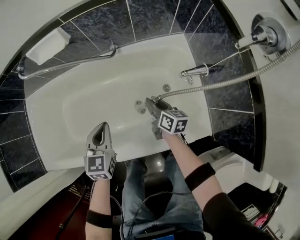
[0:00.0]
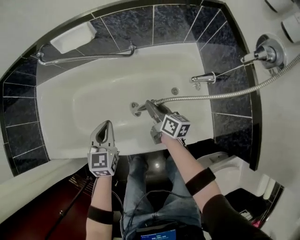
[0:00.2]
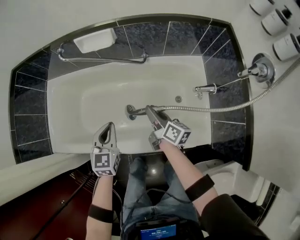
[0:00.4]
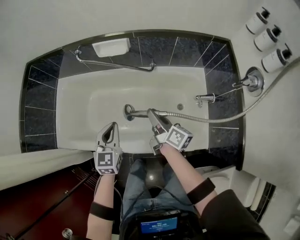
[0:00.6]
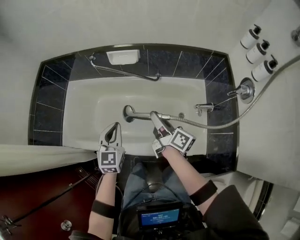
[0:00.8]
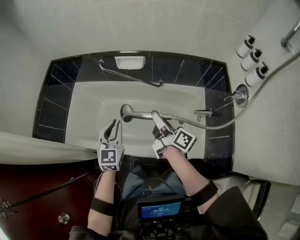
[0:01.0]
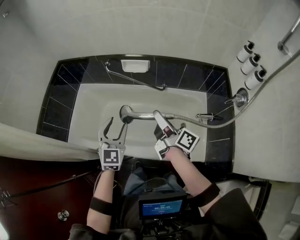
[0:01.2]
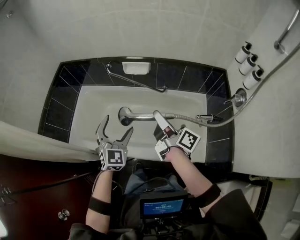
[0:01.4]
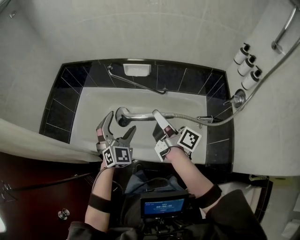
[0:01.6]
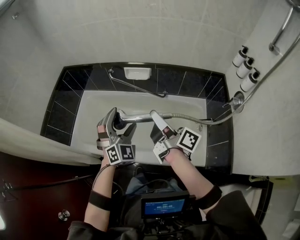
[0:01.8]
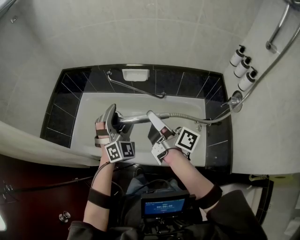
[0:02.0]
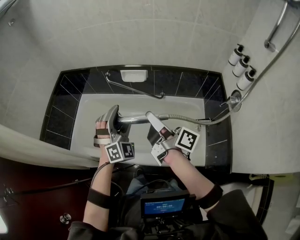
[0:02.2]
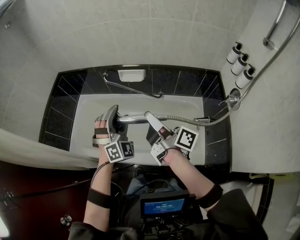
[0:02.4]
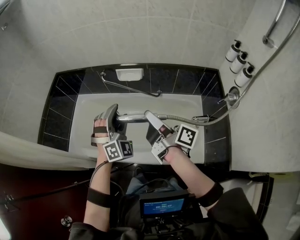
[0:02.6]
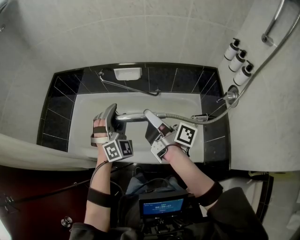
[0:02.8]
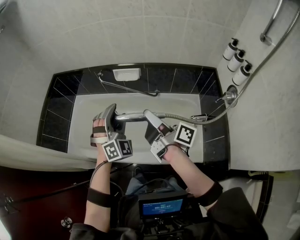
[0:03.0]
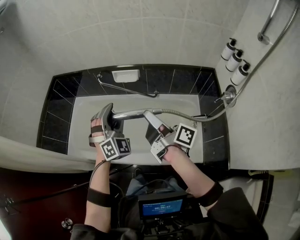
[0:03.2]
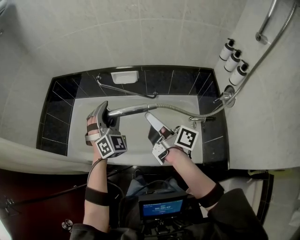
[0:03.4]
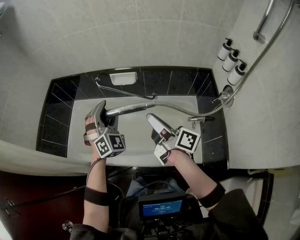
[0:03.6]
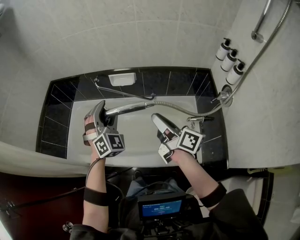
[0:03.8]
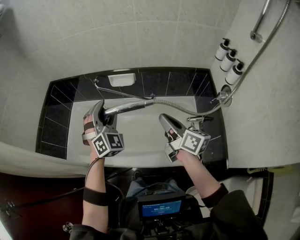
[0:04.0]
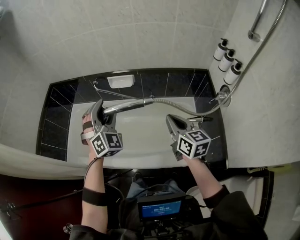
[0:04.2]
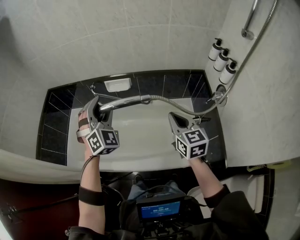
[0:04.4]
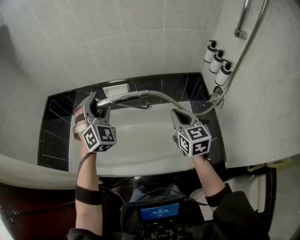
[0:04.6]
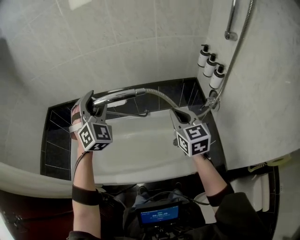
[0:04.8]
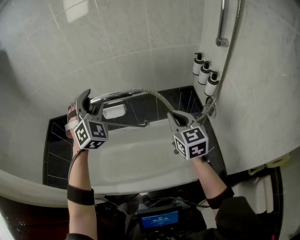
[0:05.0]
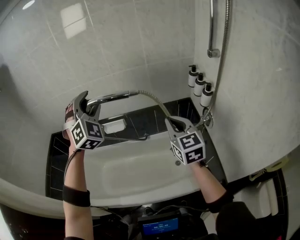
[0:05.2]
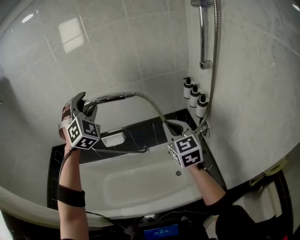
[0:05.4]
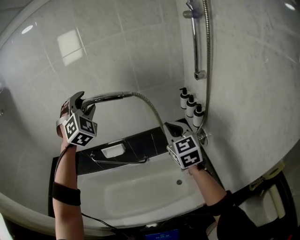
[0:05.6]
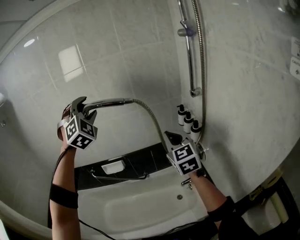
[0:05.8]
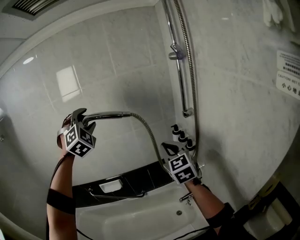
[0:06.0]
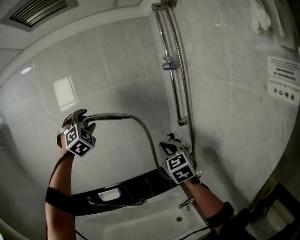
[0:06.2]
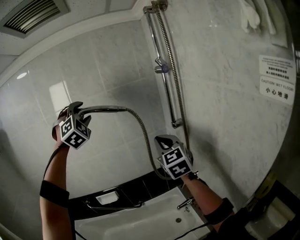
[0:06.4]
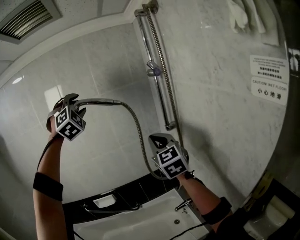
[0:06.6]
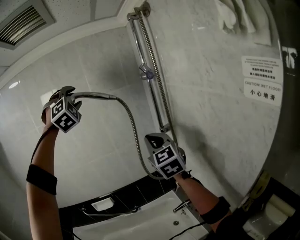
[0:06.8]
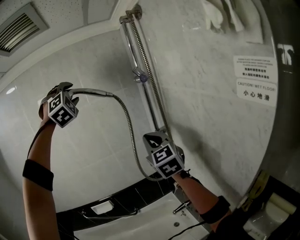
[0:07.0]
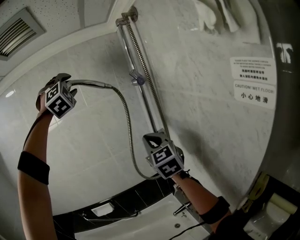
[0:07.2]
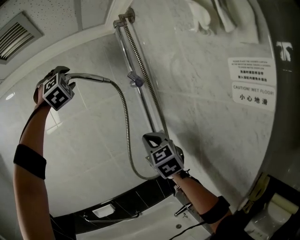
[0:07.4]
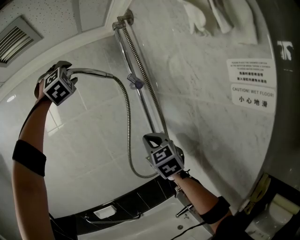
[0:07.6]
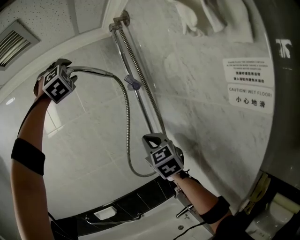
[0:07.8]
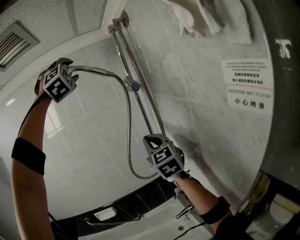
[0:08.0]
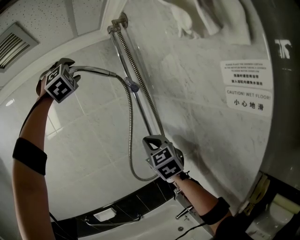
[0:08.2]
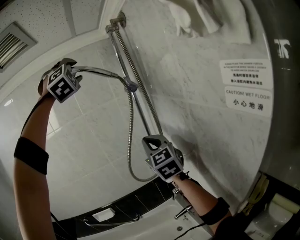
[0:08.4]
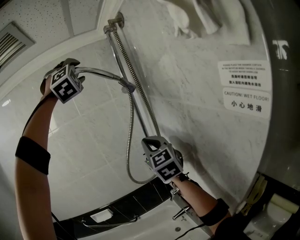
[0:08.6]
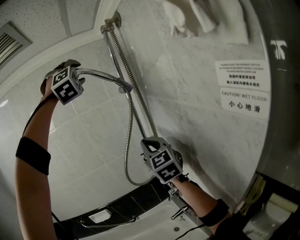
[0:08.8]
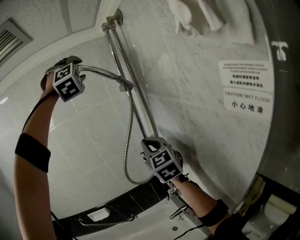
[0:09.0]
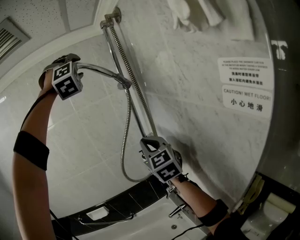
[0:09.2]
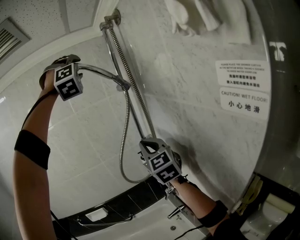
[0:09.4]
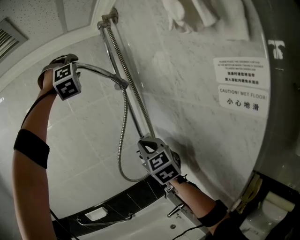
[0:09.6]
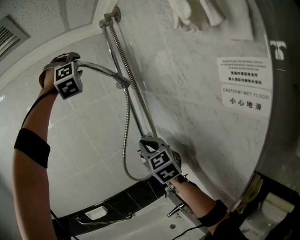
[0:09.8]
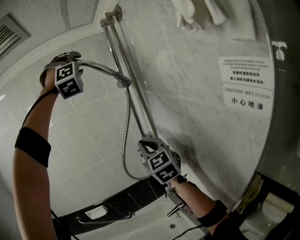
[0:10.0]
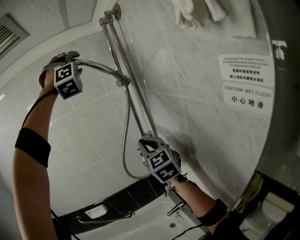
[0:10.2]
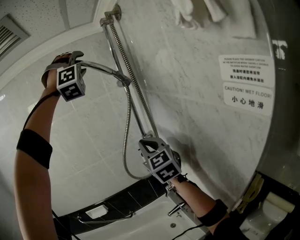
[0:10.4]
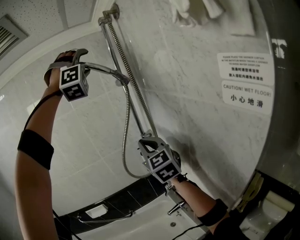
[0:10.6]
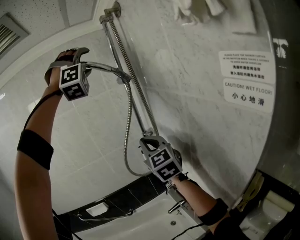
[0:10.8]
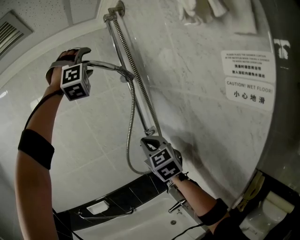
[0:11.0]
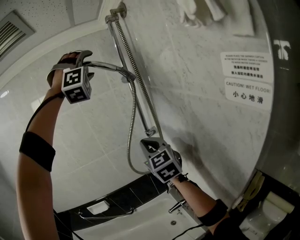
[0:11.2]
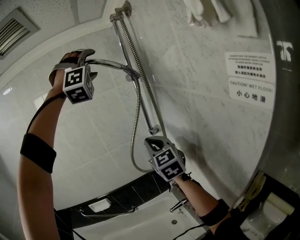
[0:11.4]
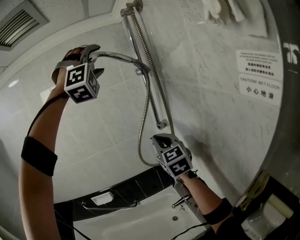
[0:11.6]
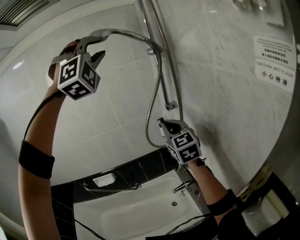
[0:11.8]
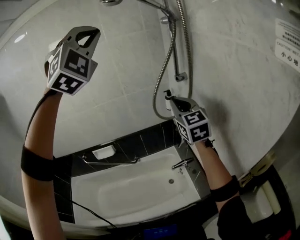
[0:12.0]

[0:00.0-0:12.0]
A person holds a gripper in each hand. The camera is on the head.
0:00.0 to 0:01.6: The grippers both shift upward by approximately 50 cm. The right gripper tilts its fingers about 40 degrees upward; the left gripper changes its angle by approximately 40 degrees, and opens.
0:01.6 to 0:03.0: The left gripper ends up roughly 5 cm from where it was.
0:03.0 to 0:04.4: The left gripper is displaced upward by some 10 cm; the right gripper shifts approximately 15 cm to the right, rotates around the line of its fingers by about 80 degrees, counterclockwise from behind, and closes up.
0:04.4 to 0:06.0: The left gripper is displaced upward, to the right and forward by approximately 40 cm, and turns by roughly 20 degrees. The right gripper goes some 30 cm upward and to the right, and turns by some 30 degrees.
0:06.0 to 0:07.6: The left gripper goes some 35 cm upward and to the right, while the right gripper moves upward and to the right, approximately 20 cm.
0:07.6 to 0:09.0: The left gripper heads to the right, covering roughly 10 cm.
0:09.0 to 0:10.4: The grippers make only small movements.
0:10.4 to 0:12.0: The left gripper is displaced backward, downward and to the left by about 25 cm, swivels roughly 30 degrees, and closes. The right gripper heads downward, covering approximately 10 cm.

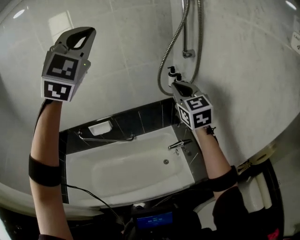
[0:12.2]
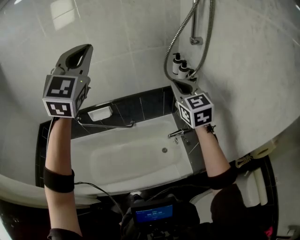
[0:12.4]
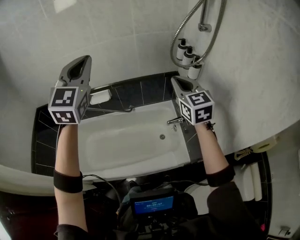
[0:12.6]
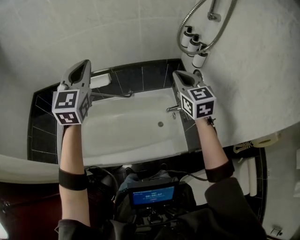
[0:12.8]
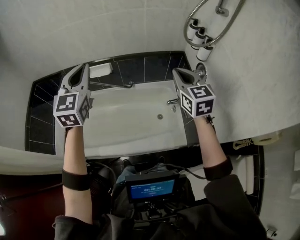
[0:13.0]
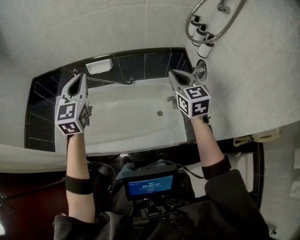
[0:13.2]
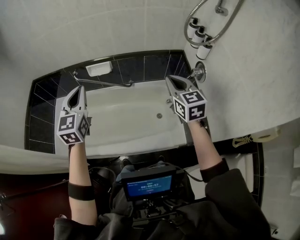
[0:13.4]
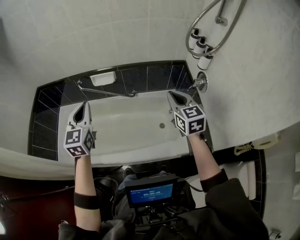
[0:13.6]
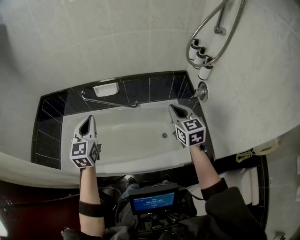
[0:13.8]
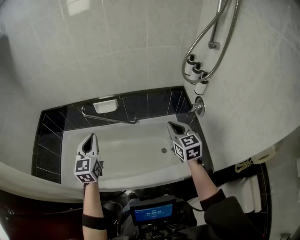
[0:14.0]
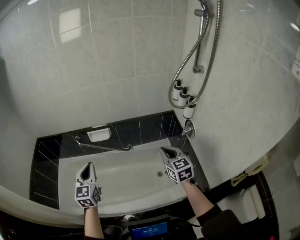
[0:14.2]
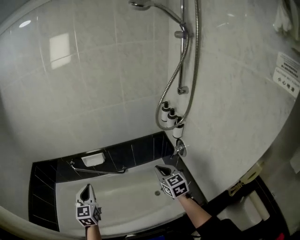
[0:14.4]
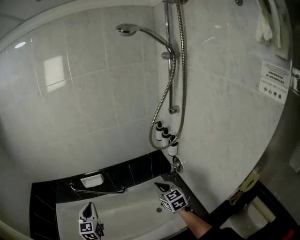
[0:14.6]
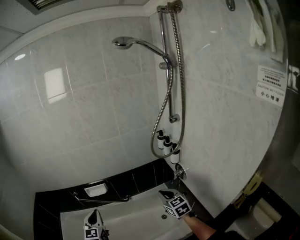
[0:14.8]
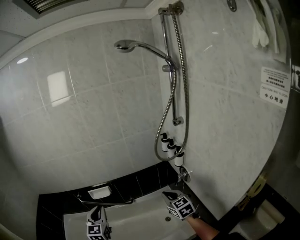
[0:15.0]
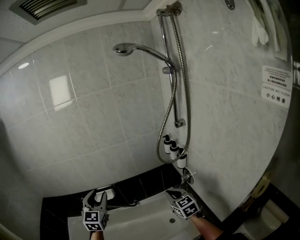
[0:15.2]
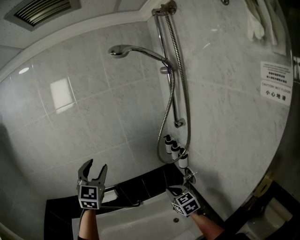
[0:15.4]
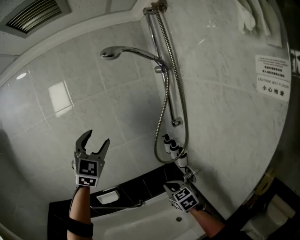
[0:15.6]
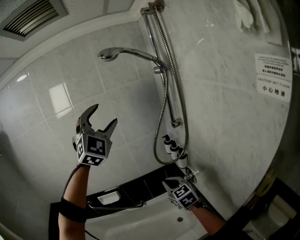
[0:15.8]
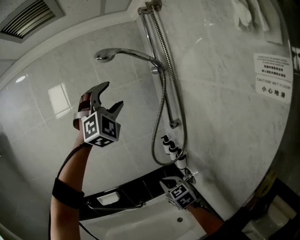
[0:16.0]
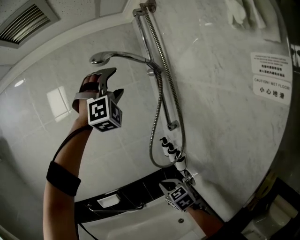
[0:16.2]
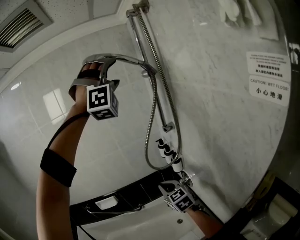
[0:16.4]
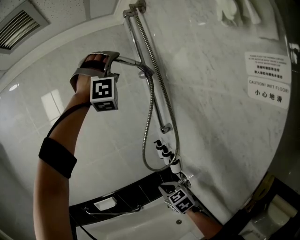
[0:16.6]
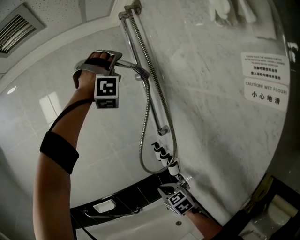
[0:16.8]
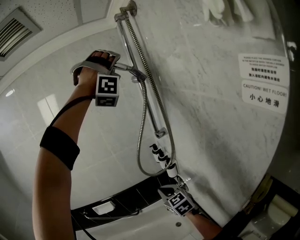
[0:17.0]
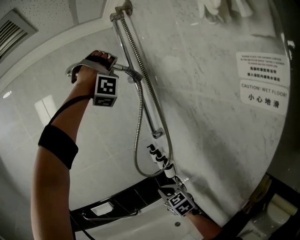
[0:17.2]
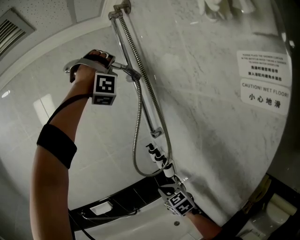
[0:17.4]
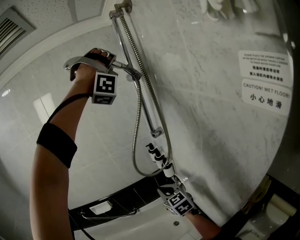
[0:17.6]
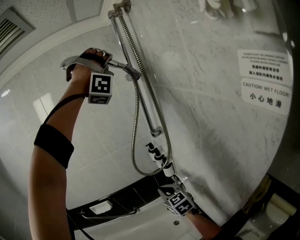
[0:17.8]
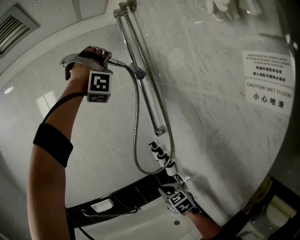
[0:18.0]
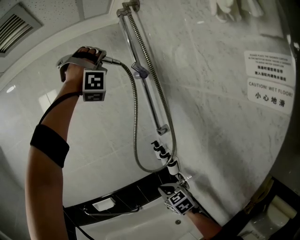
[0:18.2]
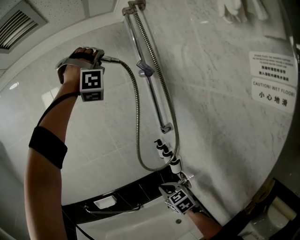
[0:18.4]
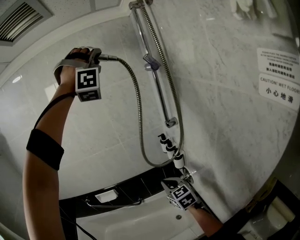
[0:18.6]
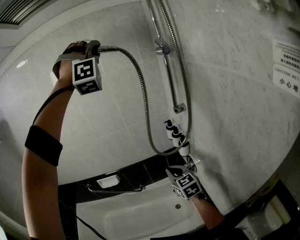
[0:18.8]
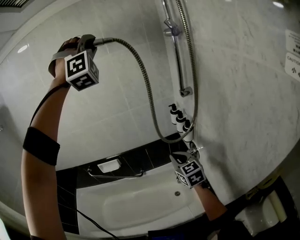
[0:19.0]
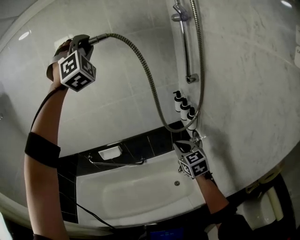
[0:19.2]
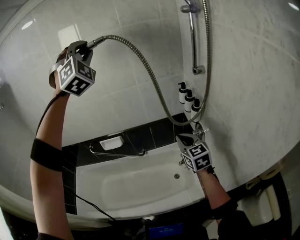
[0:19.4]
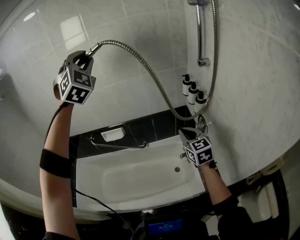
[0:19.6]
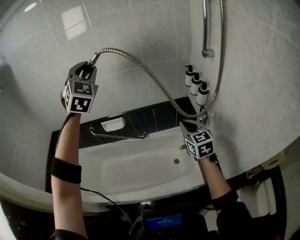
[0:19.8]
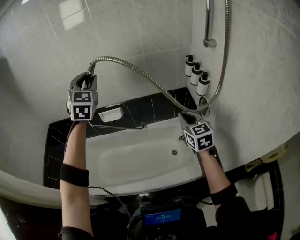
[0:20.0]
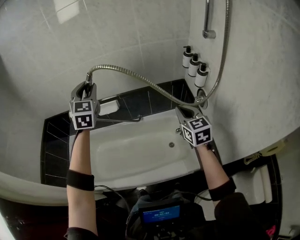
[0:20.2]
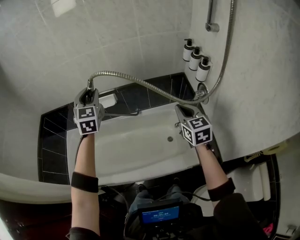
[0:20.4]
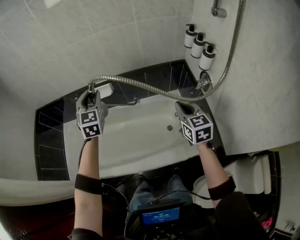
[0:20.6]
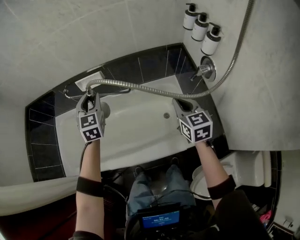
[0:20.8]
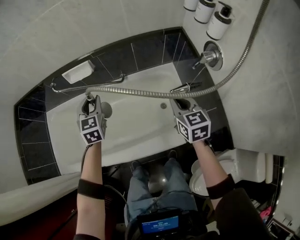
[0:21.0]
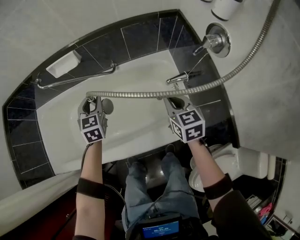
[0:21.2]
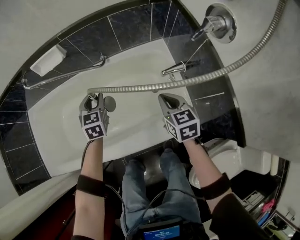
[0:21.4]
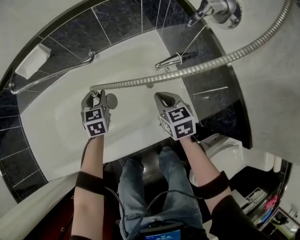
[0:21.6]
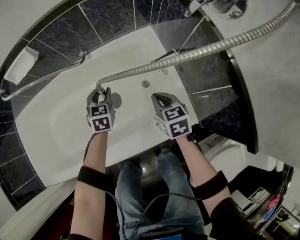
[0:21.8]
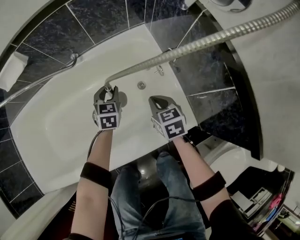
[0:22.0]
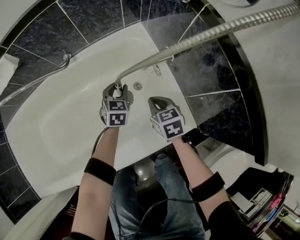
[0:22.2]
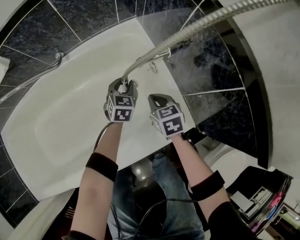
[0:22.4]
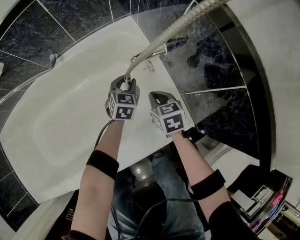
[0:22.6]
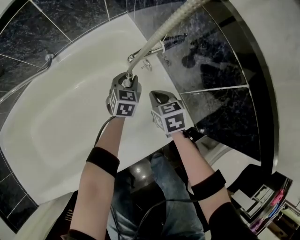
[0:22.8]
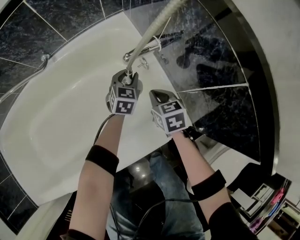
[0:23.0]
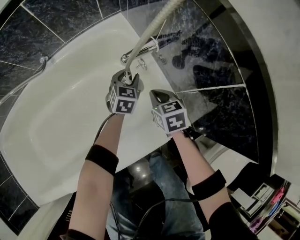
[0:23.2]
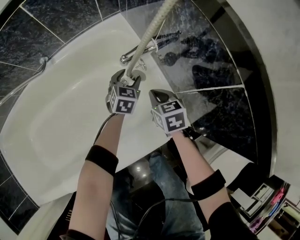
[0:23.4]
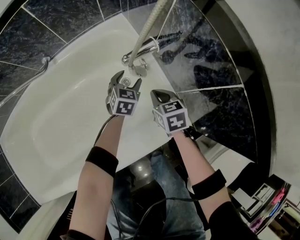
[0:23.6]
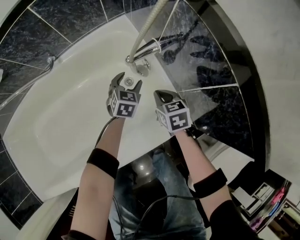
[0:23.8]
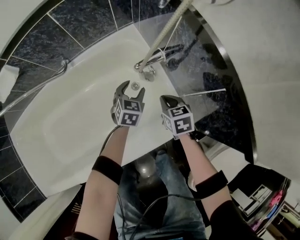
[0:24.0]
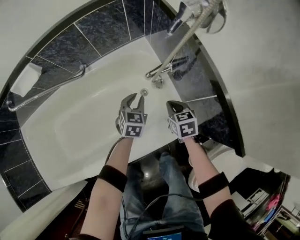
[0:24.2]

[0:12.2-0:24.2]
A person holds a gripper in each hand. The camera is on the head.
0:12.2 to 0:13.8: The left gripper shifts roughly 50 cm downward and to the left, and rotates around the line of its fingers by some 50 degrees, counterclockwise from behind. Meanwhile the right gripper is displaced downward and to the left by about 25 cm, and rotates approximately 20 degrees.
0:13.8 to 0:15.2: The right gripper travels to the right by about 5 cm. Meanwhile the left gripper is displaced upward, to the right and forward by approximately 20 cm, and opens its fingers.
0:15.2 to 0:16.6: The left gripper moves upward and to the right, some 60 cm, rotates around the line of its fingers by roughly 100 degrees, clockwise from behind, and opens up; the right gripper travels upward and forward by about 5 cm.
0:16.6 to 0:18.2: The left gripper changes place by roughly 5 cm, rotates approximately 20 degrees, and closes its fingers.
0:18.2 to 0:19.8: The left gripper moves to the left and downward, approximately 50 cm, and rolls counterclockwise, seen from behind, by roughly 80 degrees; the right gripper shifts about 5 cm to the left.
0:19.8 to 0:21.2: The left gripper moves downward, approximately 70 cm, and swivels approximately 50 degrees. The right gripper goes about 35 cm downward.
0:21.2 to 0:22.6: The left gripper travels downward and to the right by about 50 cm, and turns by approximately 30 degrees; the right gripper goes roughly 40 cm downward, and turns by some 20 degrees.
0:22.6 to 0:24.2: The grippers both shift upward by roughly 15 cm. The left gripper opens, then closes again.
